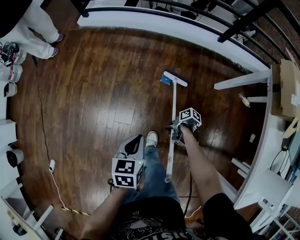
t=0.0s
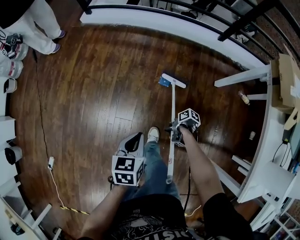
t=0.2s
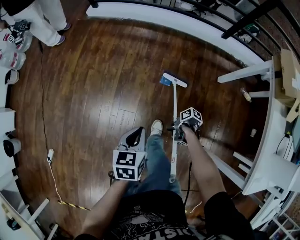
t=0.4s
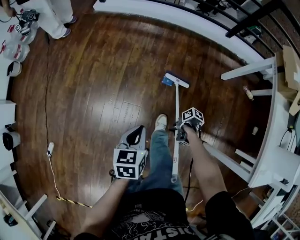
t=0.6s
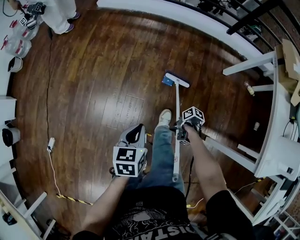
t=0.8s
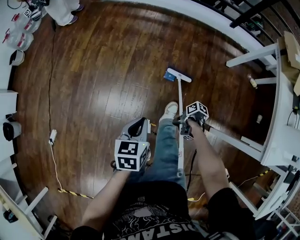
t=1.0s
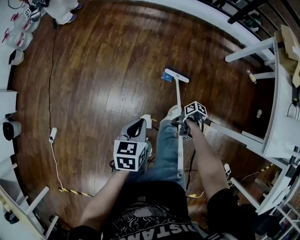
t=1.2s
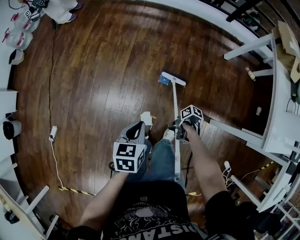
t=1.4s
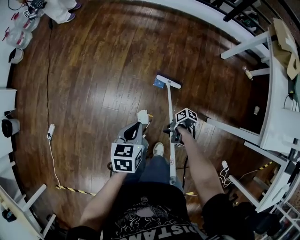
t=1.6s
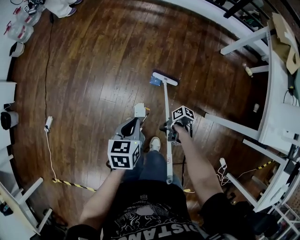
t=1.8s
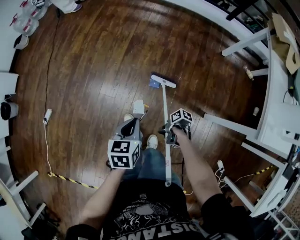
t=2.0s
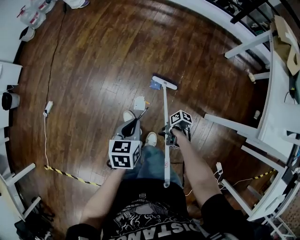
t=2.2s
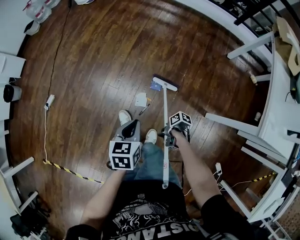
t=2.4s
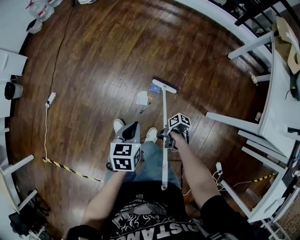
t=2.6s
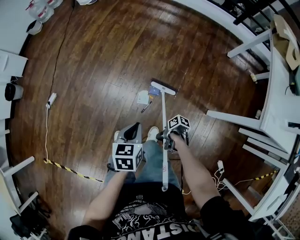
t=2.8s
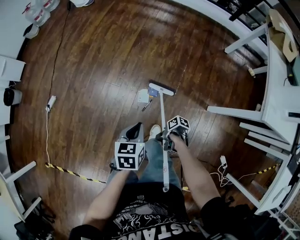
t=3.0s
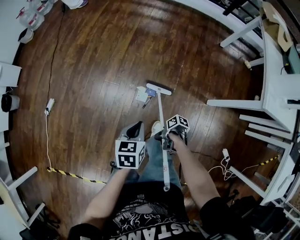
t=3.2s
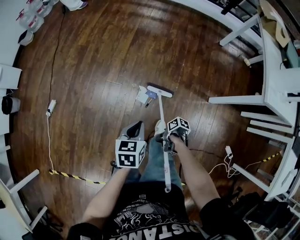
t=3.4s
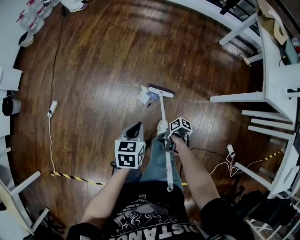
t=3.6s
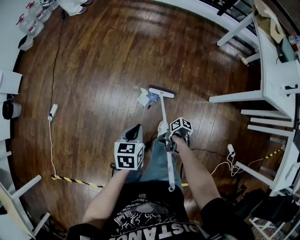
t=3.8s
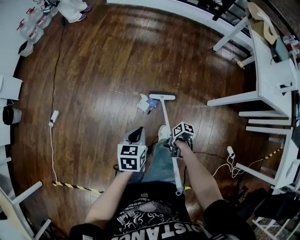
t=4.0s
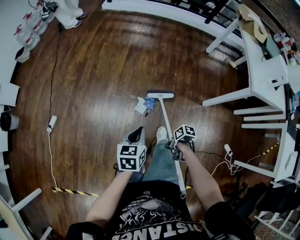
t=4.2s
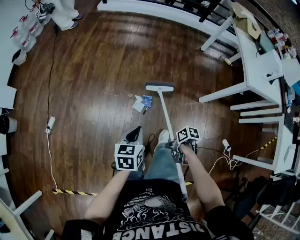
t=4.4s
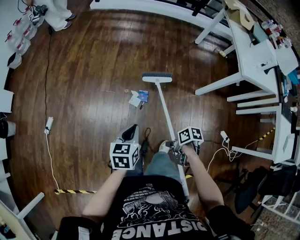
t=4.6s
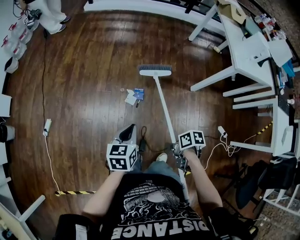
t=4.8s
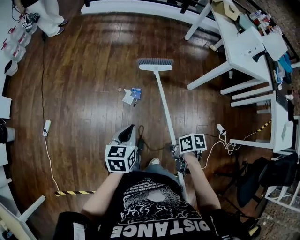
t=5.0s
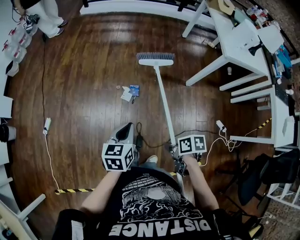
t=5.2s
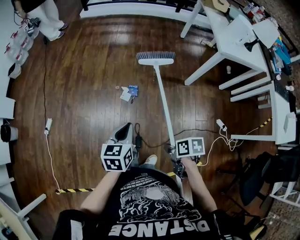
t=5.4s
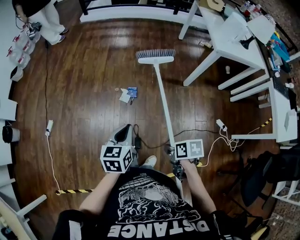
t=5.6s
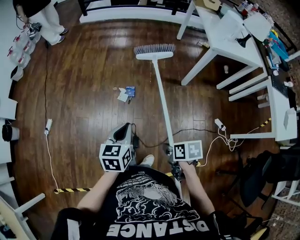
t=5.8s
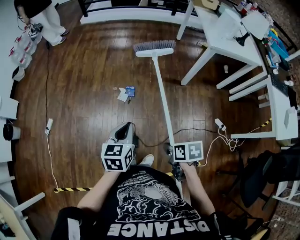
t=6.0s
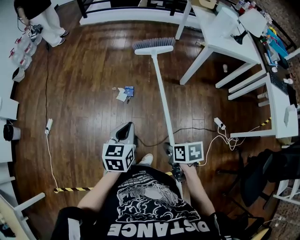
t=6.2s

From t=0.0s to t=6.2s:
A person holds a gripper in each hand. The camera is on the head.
From t=0.0s to t=1.6s: The left gripper changes place by approximately 35 cm.
From t=1.6s to t=3.2s: The left gripper shifts by roughly 25 cm.
From t=3.2s to t=4.6s: The left gripper changes place by about 15 cm.
From t=4.6s to t=6.2s: The left gripper ends up about 25 cm from where it was.

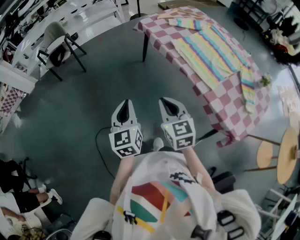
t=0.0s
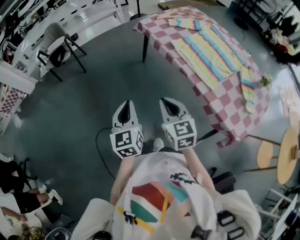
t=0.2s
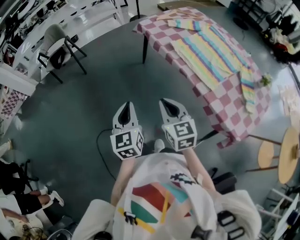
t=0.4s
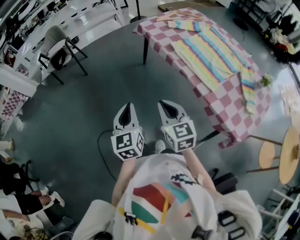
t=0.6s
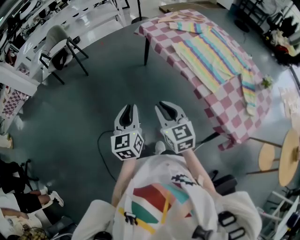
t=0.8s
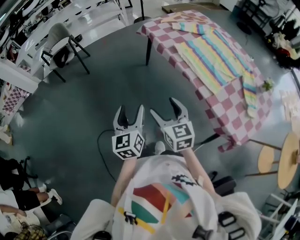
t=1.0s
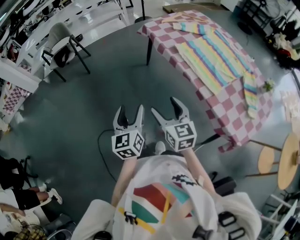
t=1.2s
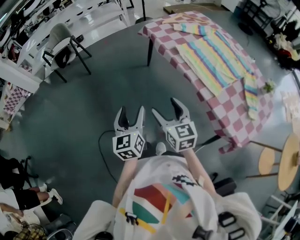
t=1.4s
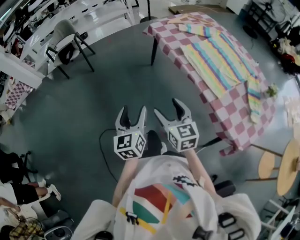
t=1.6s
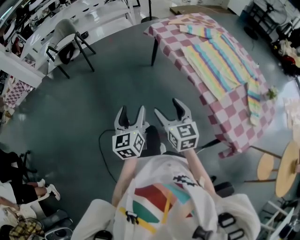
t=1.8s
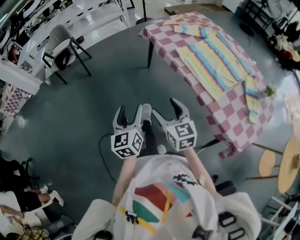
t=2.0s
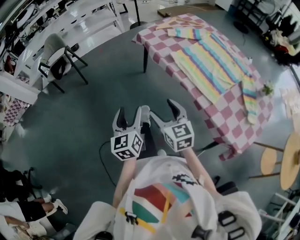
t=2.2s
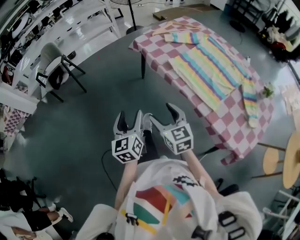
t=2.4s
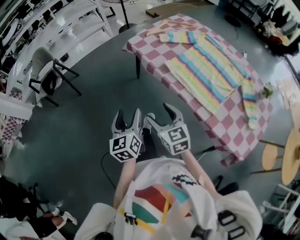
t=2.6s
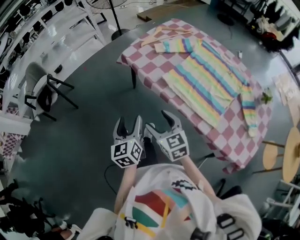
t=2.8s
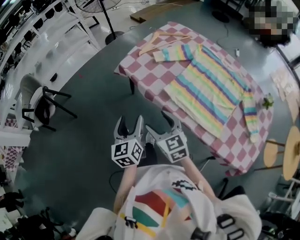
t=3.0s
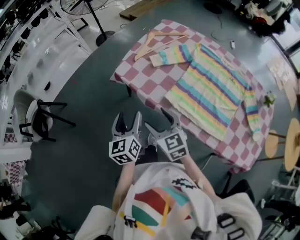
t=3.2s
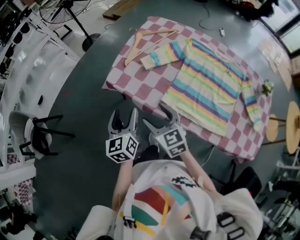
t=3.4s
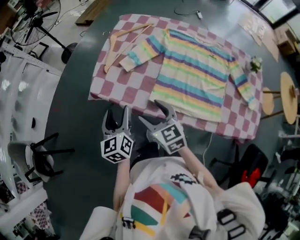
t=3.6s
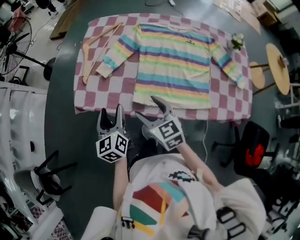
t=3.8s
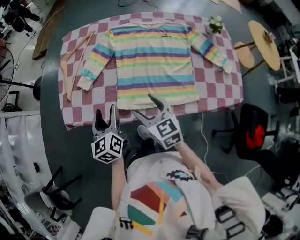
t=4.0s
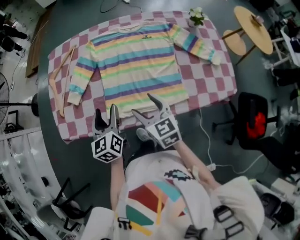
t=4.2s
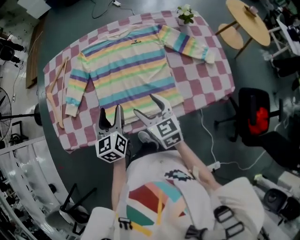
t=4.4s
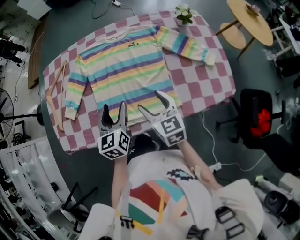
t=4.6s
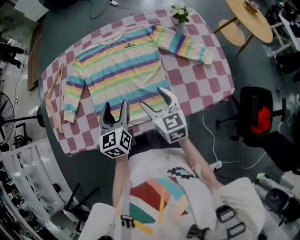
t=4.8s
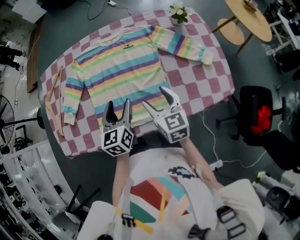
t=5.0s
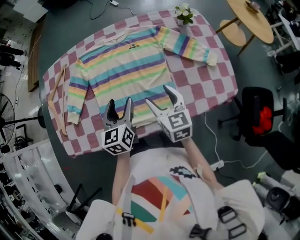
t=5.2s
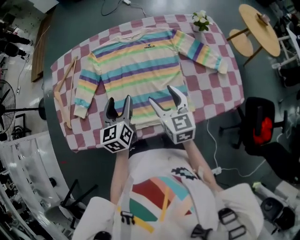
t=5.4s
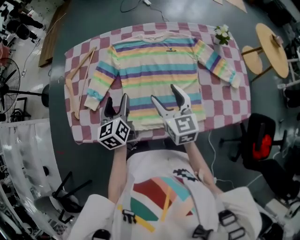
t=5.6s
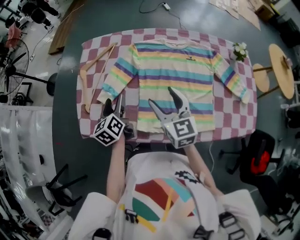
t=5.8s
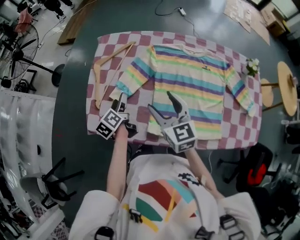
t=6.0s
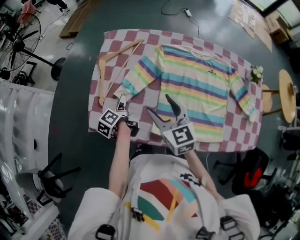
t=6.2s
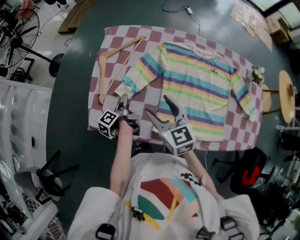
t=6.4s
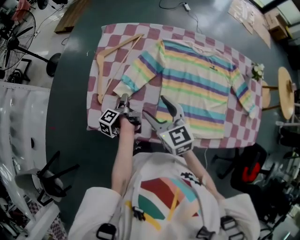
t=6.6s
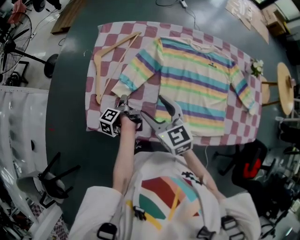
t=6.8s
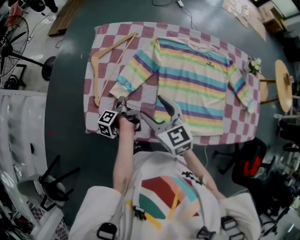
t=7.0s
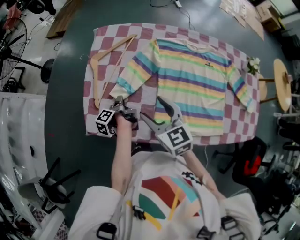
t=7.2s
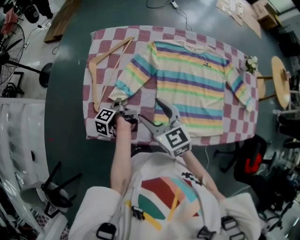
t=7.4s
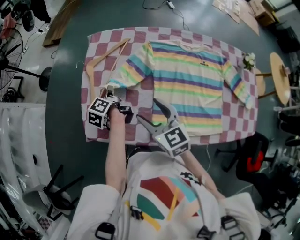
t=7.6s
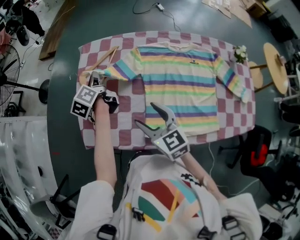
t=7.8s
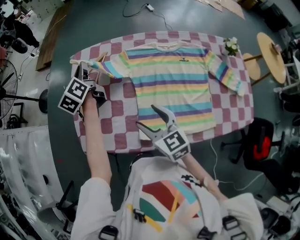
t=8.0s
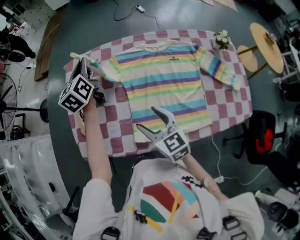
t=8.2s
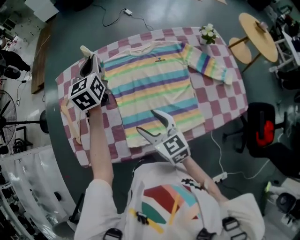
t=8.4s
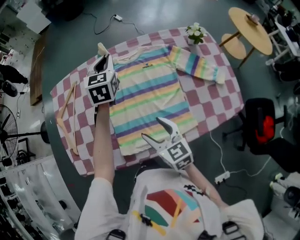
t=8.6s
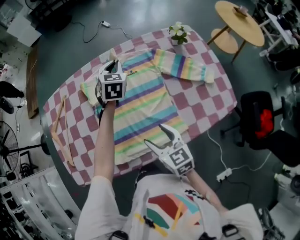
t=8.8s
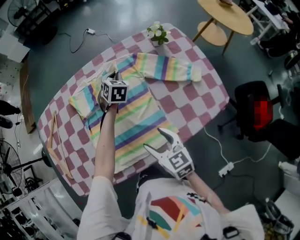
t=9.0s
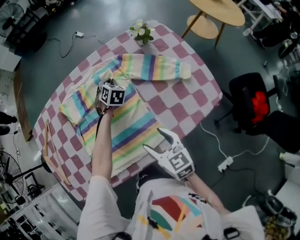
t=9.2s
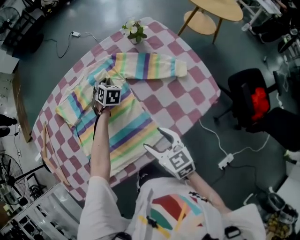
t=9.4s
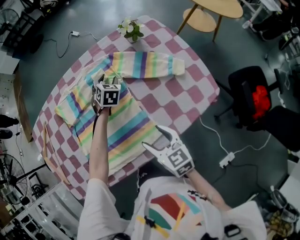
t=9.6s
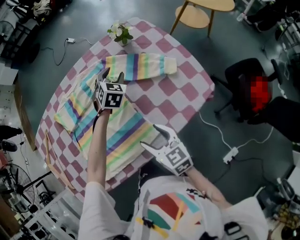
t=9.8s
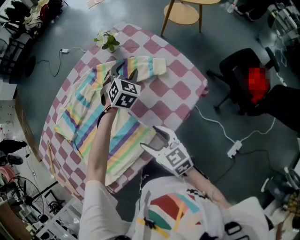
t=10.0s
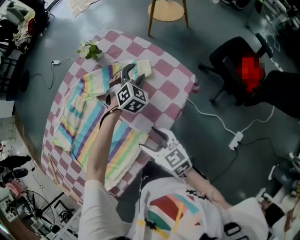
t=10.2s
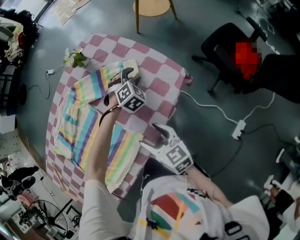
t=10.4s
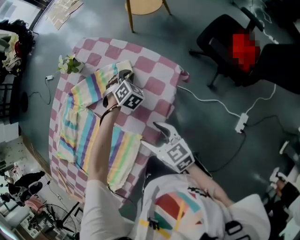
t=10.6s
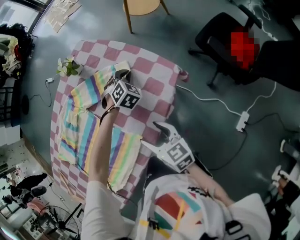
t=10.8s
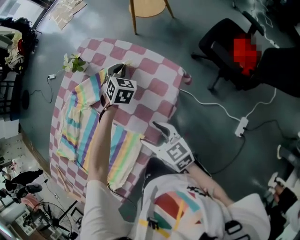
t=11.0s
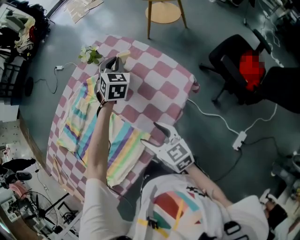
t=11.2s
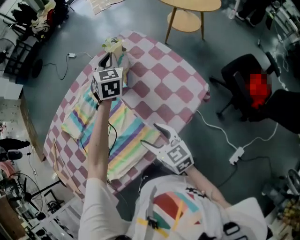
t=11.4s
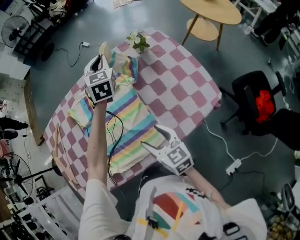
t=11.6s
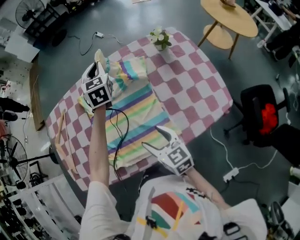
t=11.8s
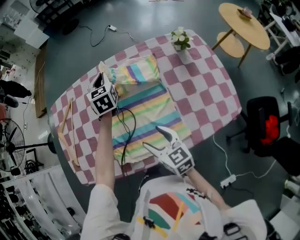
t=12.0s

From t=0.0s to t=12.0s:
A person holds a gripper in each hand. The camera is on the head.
From t=0.0s to t=1.6s: The left gripper opens; the right gripper opens up.
From t=1.6s to t=3.0s: The grippers both shift forward by roughly 30 cm.
From t=3.0s to t=4.4s: The right gripper ends up some 30 cm from where it was, and swivels roughly 60 degrees. The left gripper ends up approximately 35 cm from where it was, and swivels about 50 degrees.
From t=4.4s to t=6.0s: Both grippers travel together to the left and forward, about 25 cm. The left gripper rotates around the line of its fingers by about 40 degrees, counterclockwise from behind.
From t=6.0s to t=7.6s: The left gripper moves forward, some 10 cm, changes its angle by about 20 degrees, and closes its fingers. Meanwhile the right gripper heads to the left, covering about 5 cm.
From t=7.6s to t=9.0s: The right gripper moves about 35 cm, and turns by roughly 30 degrees, while the left gripper moves roughly 20 cm upward and comes back, and twists about 110 degrees clockwise, seen from behind.
From t=9.0s to t=10.4s: The left gripper moves up and down over approximately 10 cm, changing direction 2 times, rotates around the line of its fingers by roughly 60 degrees, clockwise from behind, and opens its fingers. The right gripper shifts by some 20 cm, and rotates approximately 30 degrees.
From t=10.4s to t=12.0s: The left gripper moves some 60 cm, rotates around the line of its fingers by about 80 degrees, counterclockwise from behind, and closes, while the right gripper moves about 25 cm, and swivels about 30 degrees.

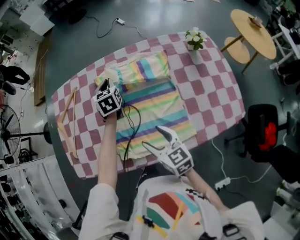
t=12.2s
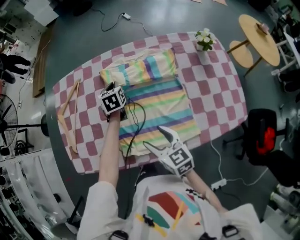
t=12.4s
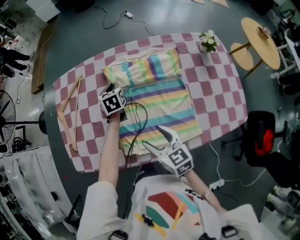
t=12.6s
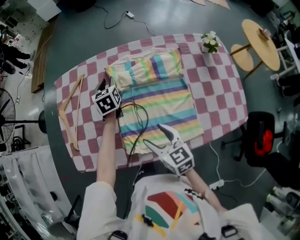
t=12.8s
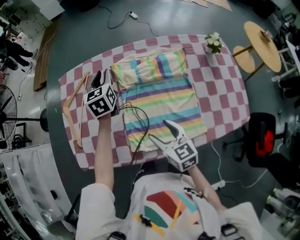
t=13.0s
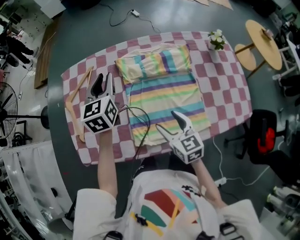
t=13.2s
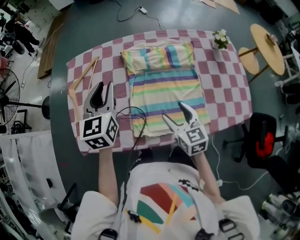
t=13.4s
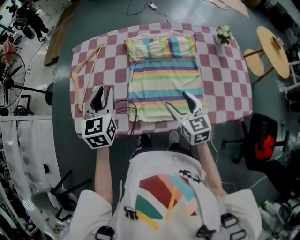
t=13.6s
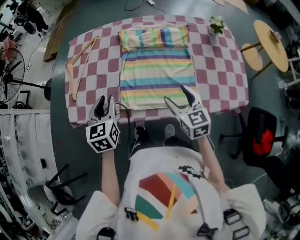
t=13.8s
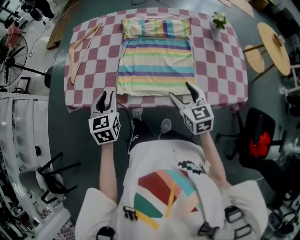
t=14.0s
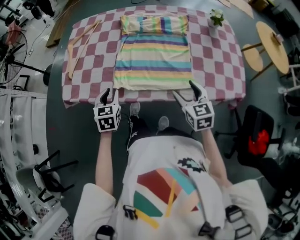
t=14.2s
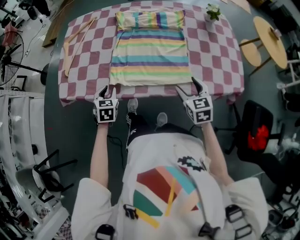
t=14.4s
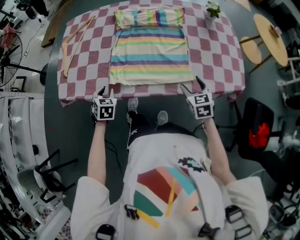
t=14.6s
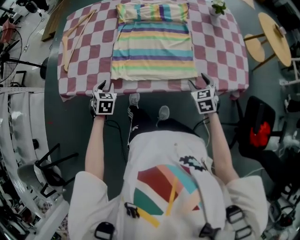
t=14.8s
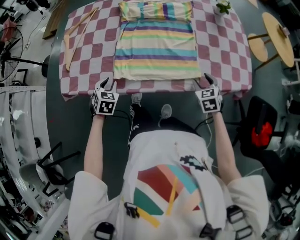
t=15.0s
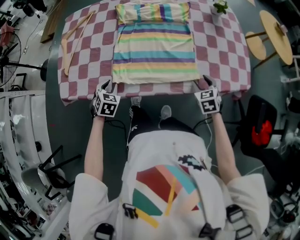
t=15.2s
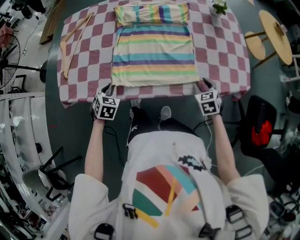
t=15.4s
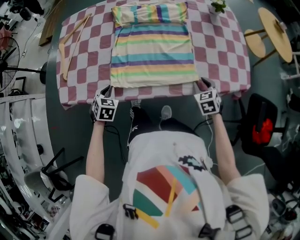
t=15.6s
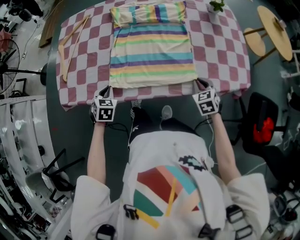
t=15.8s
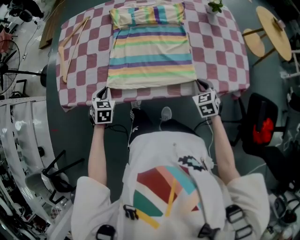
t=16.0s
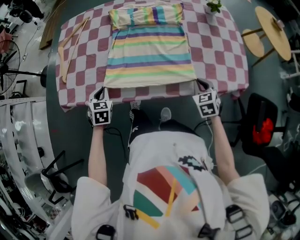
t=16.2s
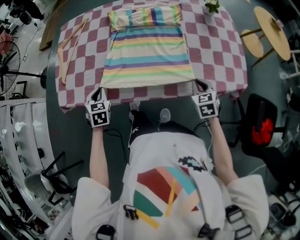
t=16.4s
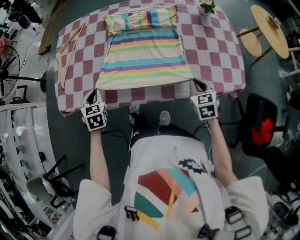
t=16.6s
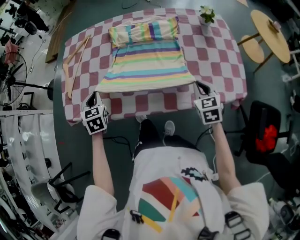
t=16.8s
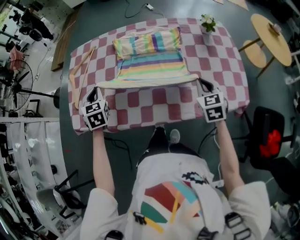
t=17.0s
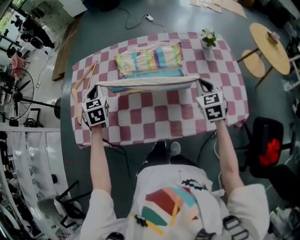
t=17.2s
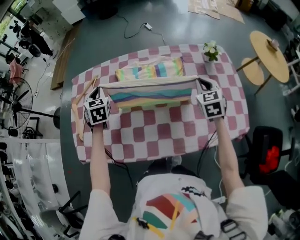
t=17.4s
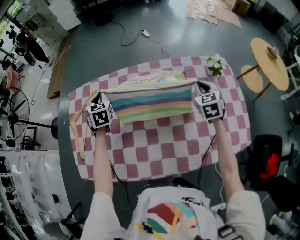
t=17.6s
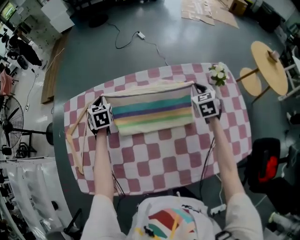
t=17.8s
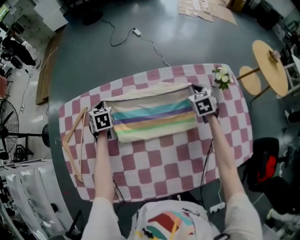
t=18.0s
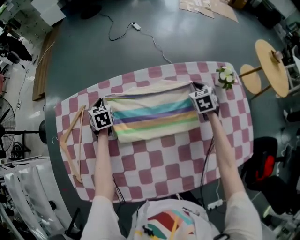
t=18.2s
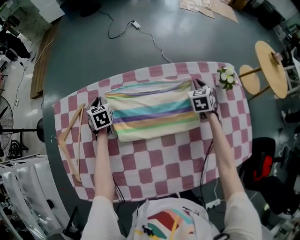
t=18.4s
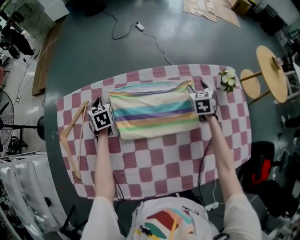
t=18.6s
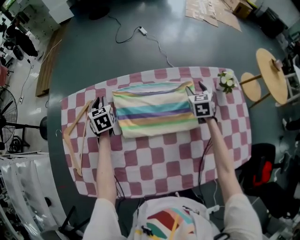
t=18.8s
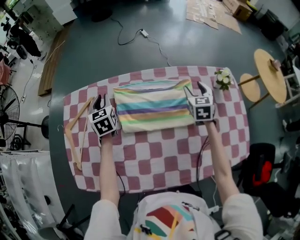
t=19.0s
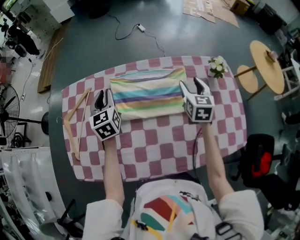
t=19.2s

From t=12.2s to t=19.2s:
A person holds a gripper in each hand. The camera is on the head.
From t=12.2s to t=13.6s: The left gripper moves backward, to the left and upward, approximately 30 cm.
From t=13.6s to t=15.0s: The left gripper moves downward and backward, approximately 30 cm, and turns by approximately 30 degrees. The right gripper is displaced to the right, downward and backward by roughly 25 cm, and turns by about 30 degrees.
From t=15.0s to t=16.4s: The right gripper closes its fingers.
From t=16.4s to t=17.8s: The pair of grippers is taken forward, some 40 cm.
From t=17.8s to t=19.2s: The right gripper is displaced to the left and upward by some 10 cm, turns by approximately 20 degrees, and opens up. Meanwhile the left gripper moves upward and backward, approximately 10 cm, and swivels approximately 20 degrees.
